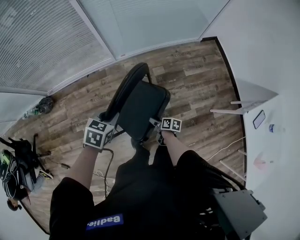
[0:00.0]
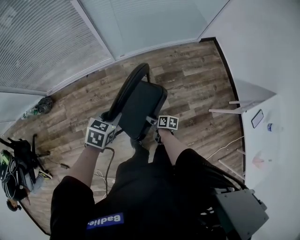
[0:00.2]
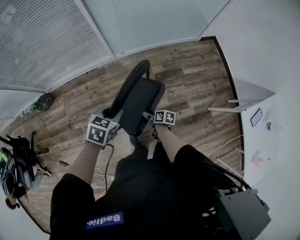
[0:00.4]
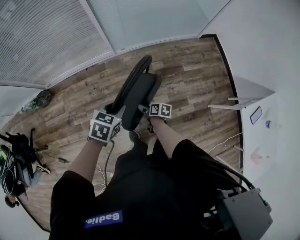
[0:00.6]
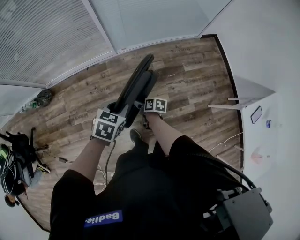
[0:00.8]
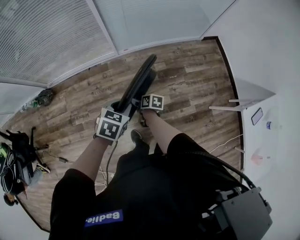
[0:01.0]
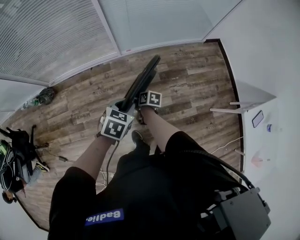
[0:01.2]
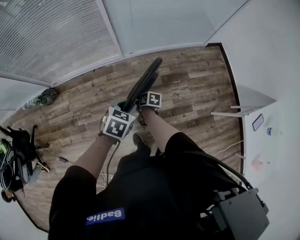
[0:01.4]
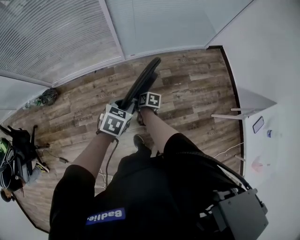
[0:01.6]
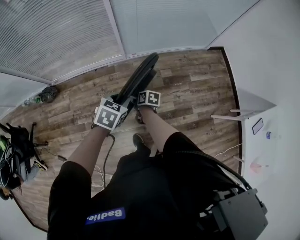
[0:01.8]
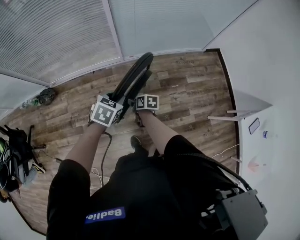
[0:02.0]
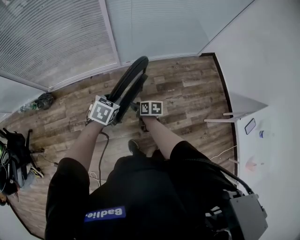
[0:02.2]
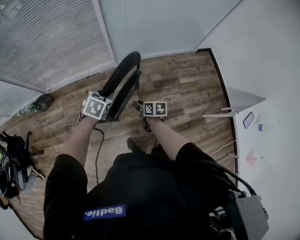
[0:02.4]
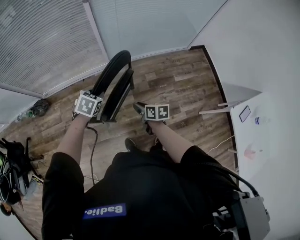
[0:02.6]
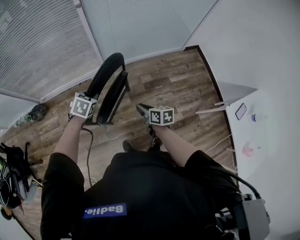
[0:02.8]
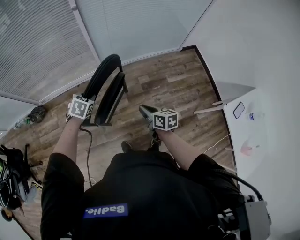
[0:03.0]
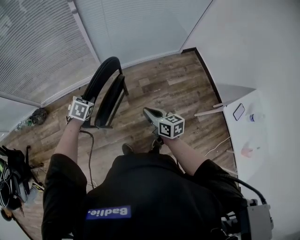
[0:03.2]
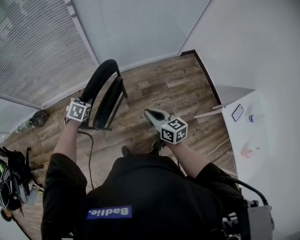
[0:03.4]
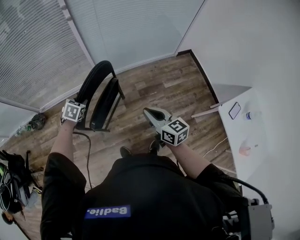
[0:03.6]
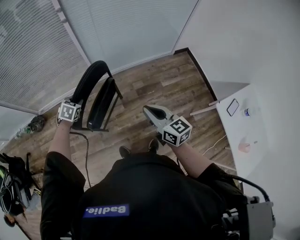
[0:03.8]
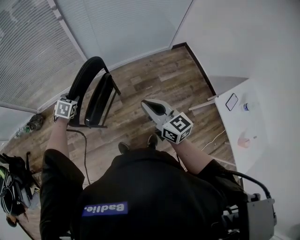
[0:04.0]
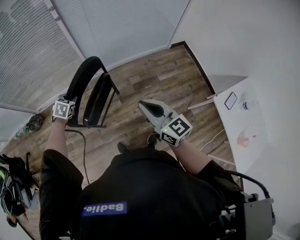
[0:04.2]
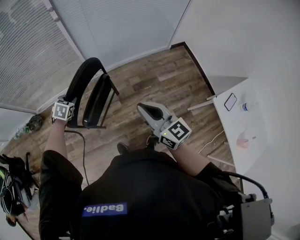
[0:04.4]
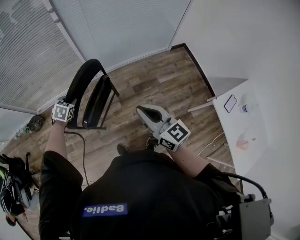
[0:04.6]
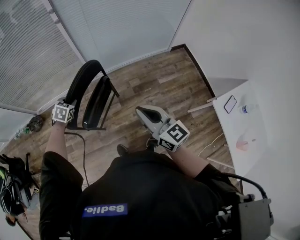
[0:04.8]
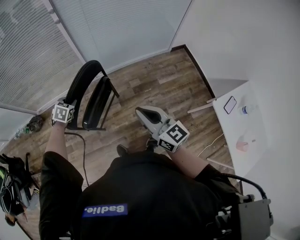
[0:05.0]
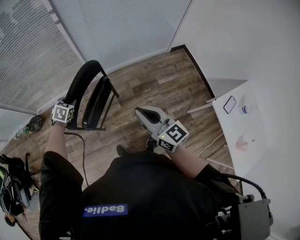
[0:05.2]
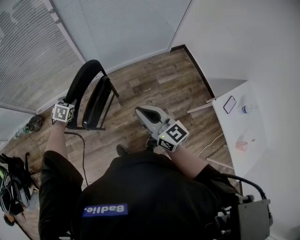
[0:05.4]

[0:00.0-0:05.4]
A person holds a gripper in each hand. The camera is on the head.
0:00.0 to 0:01.4: The right gripper travels to the left, forward and upward by about 20 cm.
0:01.4 to 0:02.8: The right gripper is displaced upward and to the right by approximately 20 cm, changes its angle by some 30 degrees, and closes its fingers; the left gripper is displaced to the left and forward by some 10 cm.
0:02.8 to 0:04.0: The right gripper goes about 25 cm upward and to the right, and swivels roughly 40 degrees.
0:04.0 to 0:05.4: The grippers stay close to where they were, moving slightly.

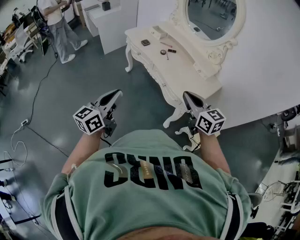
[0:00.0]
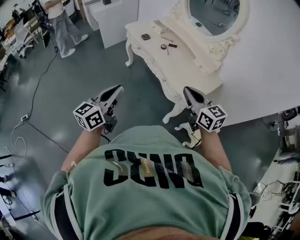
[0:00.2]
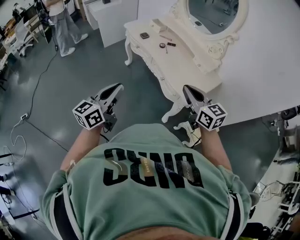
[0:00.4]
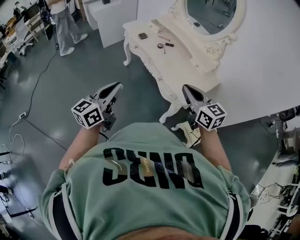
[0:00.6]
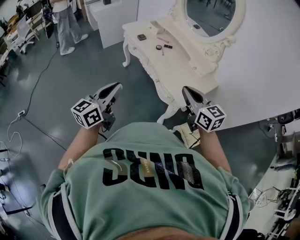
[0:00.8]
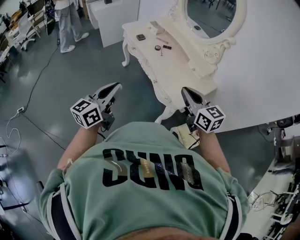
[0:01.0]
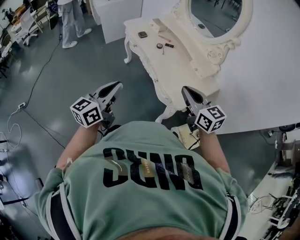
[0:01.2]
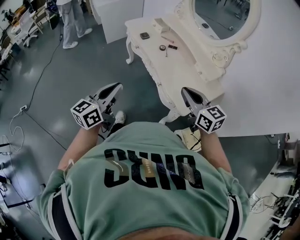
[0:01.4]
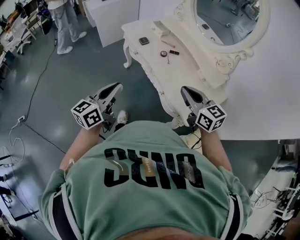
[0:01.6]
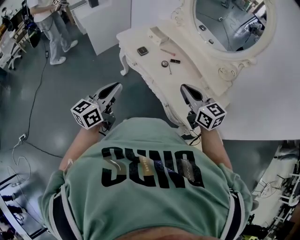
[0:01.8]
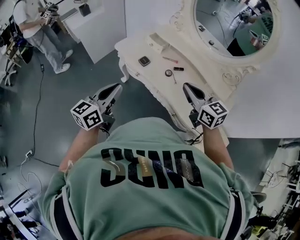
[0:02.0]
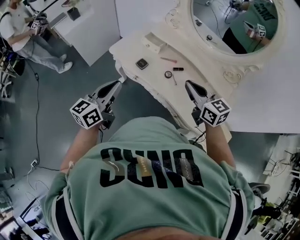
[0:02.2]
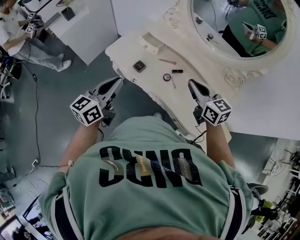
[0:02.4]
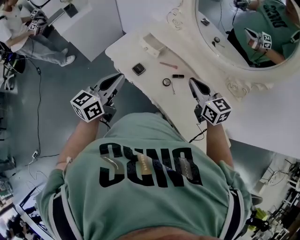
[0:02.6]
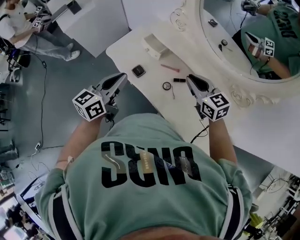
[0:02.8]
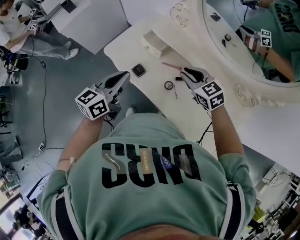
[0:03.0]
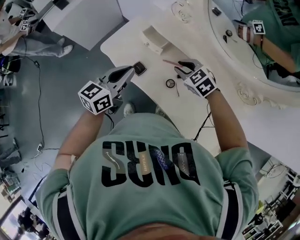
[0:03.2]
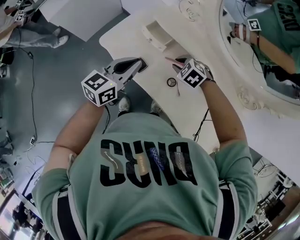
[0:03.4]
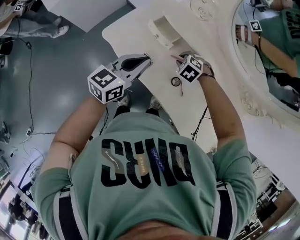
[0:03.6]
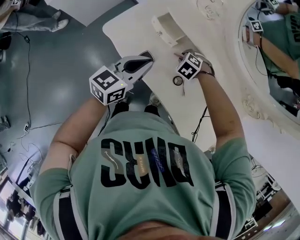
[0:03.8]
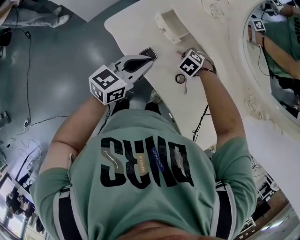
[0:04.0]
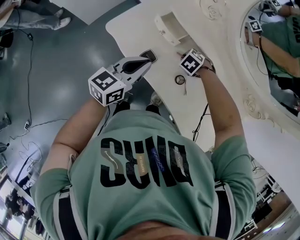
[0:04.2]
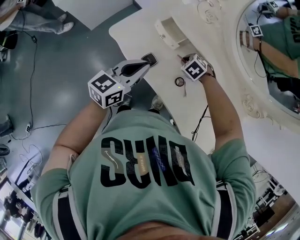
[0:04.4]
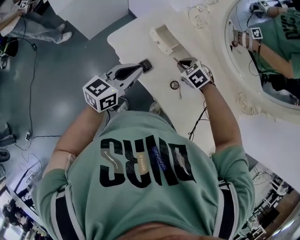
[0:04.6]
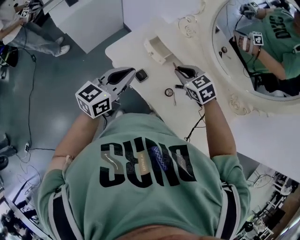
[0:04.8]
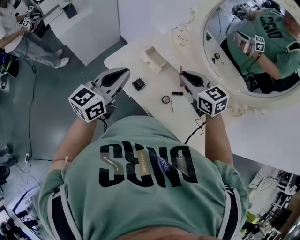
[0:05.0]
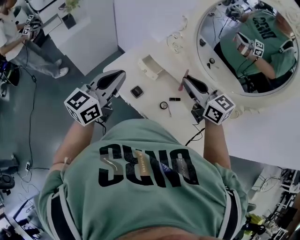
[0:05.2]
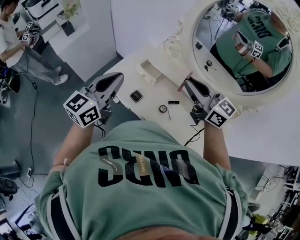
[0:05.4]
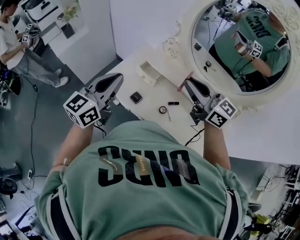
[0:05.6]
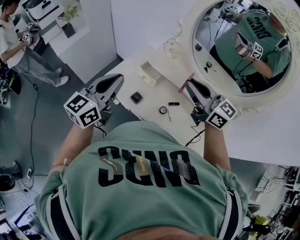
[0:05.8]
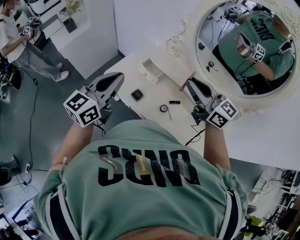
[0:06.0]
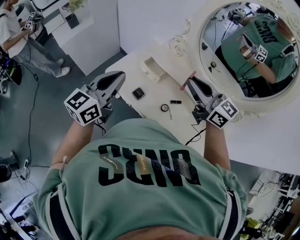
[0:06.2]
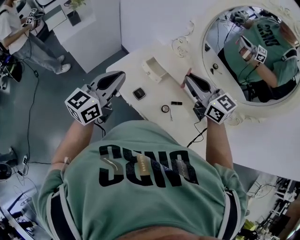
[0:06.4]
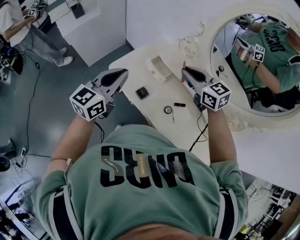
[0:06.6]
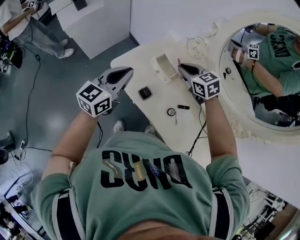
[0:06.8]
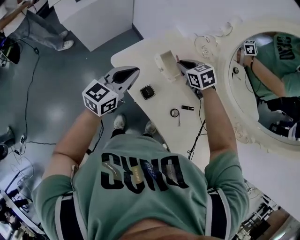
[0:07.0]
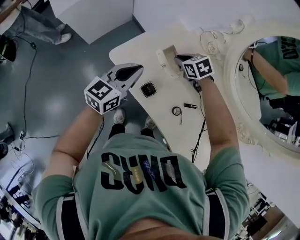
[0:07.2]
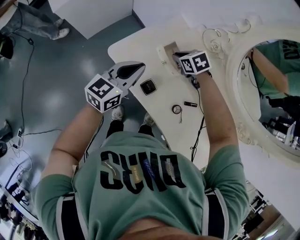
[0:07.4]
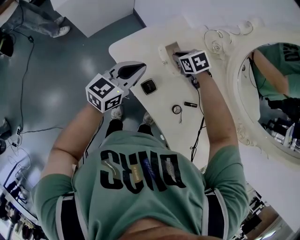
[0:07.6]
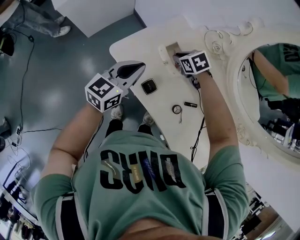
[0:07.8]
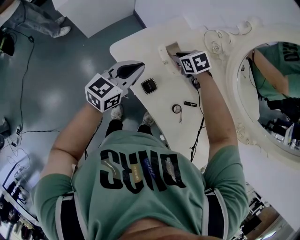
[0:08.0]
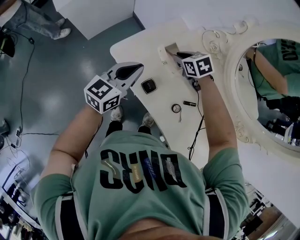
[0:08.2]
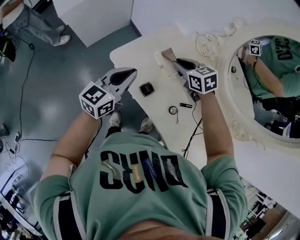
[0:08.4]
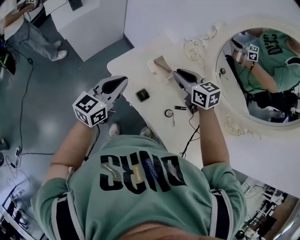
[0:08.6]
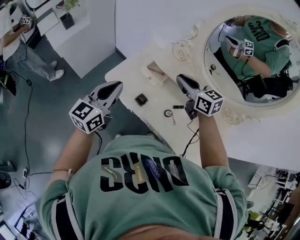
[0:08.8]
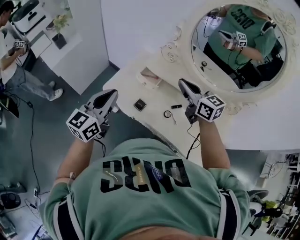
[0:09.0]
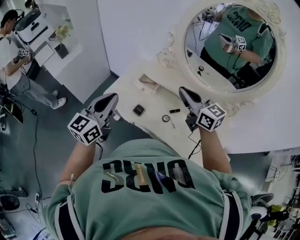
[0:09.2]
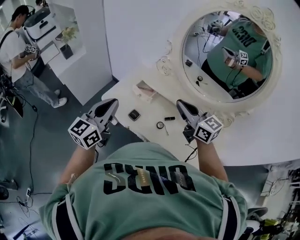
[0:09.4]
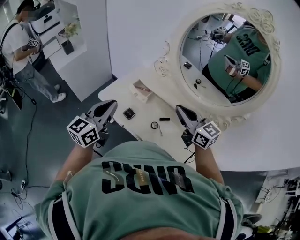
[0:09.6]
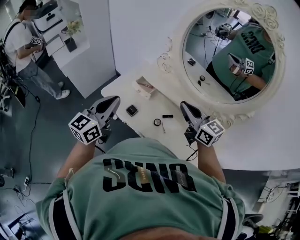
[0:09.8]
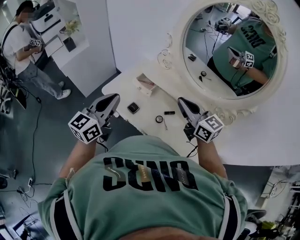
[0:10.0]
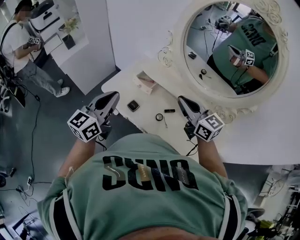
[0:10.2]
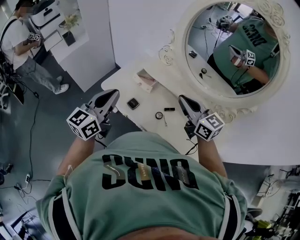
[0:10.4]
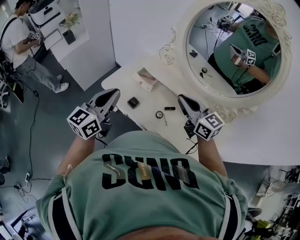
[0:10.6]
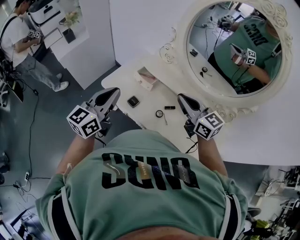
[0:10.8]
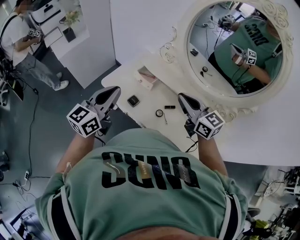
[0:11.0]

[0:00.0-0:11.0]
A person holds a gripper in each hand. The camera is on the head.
0:00.0 to 0:01.6: Both grippers travel together forward, roughly 15 cm.
0:01.6 to 0:03.2: The two grippers travel together, forward, some 40 cm. The left gripper swivels approximately 20 degrees, while the right gripper angles its fingers downward, by about 40 degrees, and opens.
0:03.2 to 0:04.8: The right gripper moves roughly 15 cm downward and comes back. The left gripper heads upward, covering roughly 5 cm.
0:04.8 to 0:06.2: The right gripper shifts about 20 cm upward, and angles its fingers upward, by roughly 40 degrees. Meanwhile the left gripper is displaced upward by some 10 cm.
0:06.2 to 0:07.8: The right gripper is displaced downward and forward by some 40 cm, and tilts its fingers about 60 degrees downward. The left gripper moves downward and forward, approximately 20 cm.
0:07.8 to 0:09.4: The right gripper moves upward and backward, some 40 cm, and tips its fingers upward by about 60 degrees. Meanwhile the left gripper heads upward and backward, covering about 25 cm.
0:09.4 to 0:11.0: The grippers make only small movements.

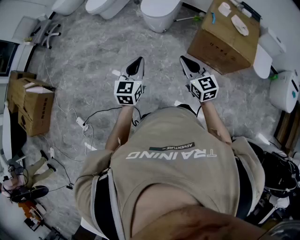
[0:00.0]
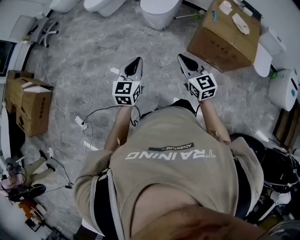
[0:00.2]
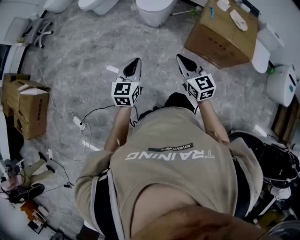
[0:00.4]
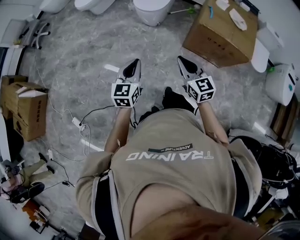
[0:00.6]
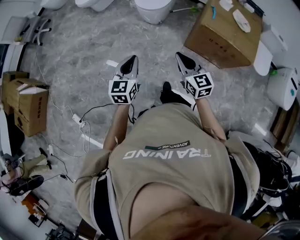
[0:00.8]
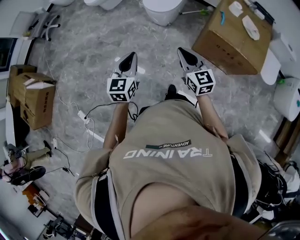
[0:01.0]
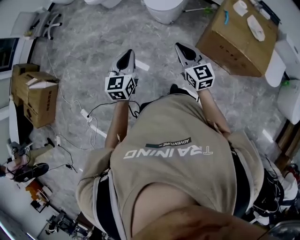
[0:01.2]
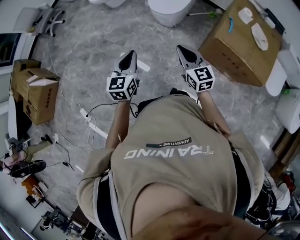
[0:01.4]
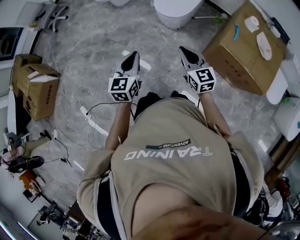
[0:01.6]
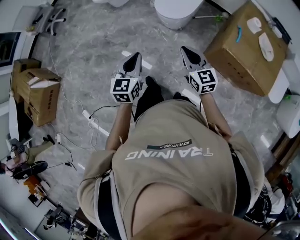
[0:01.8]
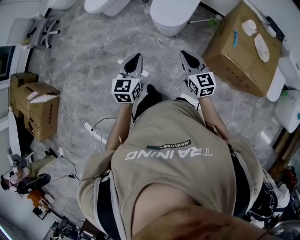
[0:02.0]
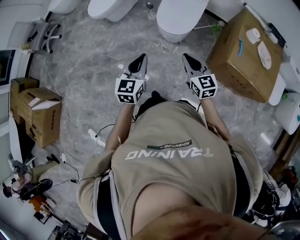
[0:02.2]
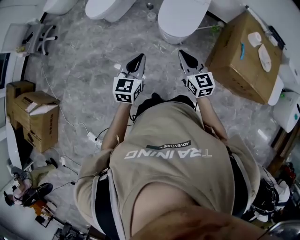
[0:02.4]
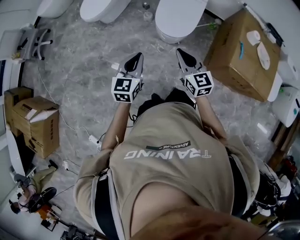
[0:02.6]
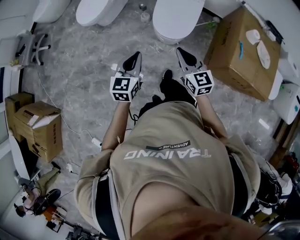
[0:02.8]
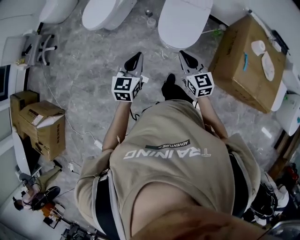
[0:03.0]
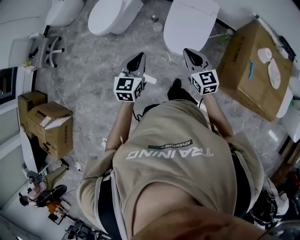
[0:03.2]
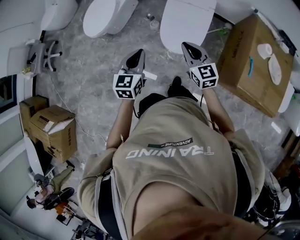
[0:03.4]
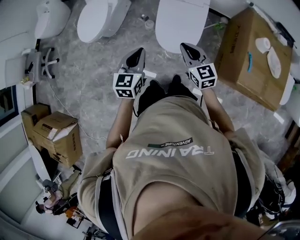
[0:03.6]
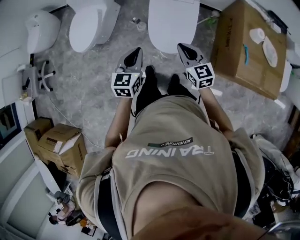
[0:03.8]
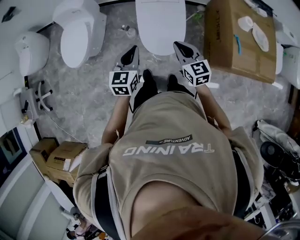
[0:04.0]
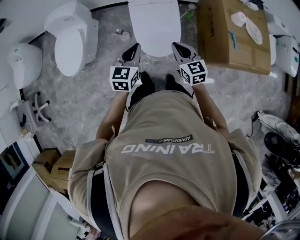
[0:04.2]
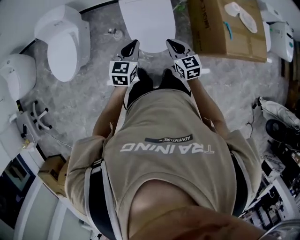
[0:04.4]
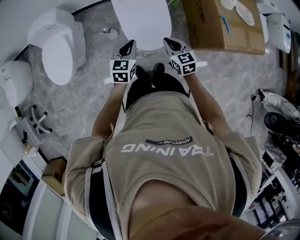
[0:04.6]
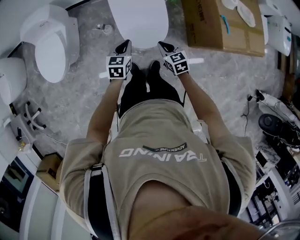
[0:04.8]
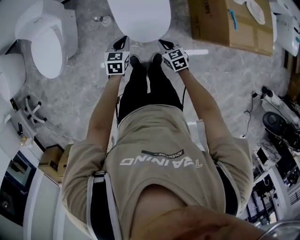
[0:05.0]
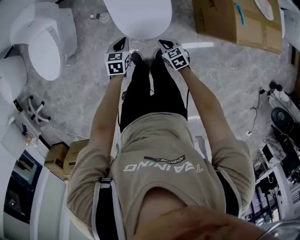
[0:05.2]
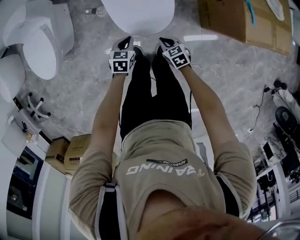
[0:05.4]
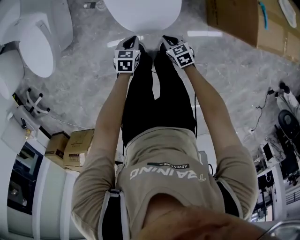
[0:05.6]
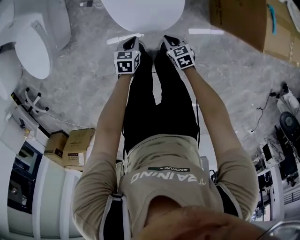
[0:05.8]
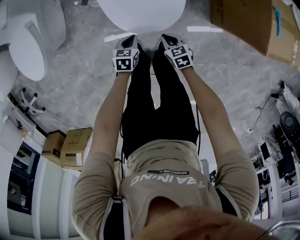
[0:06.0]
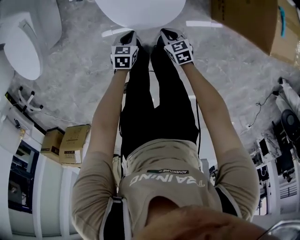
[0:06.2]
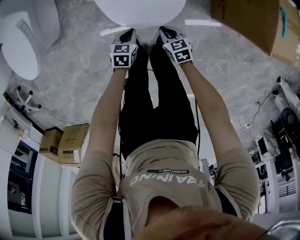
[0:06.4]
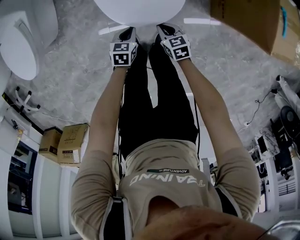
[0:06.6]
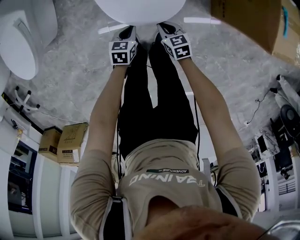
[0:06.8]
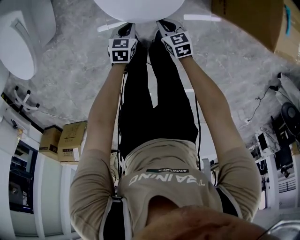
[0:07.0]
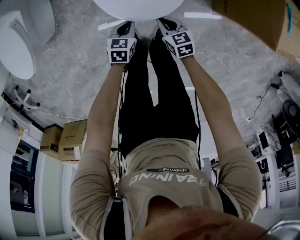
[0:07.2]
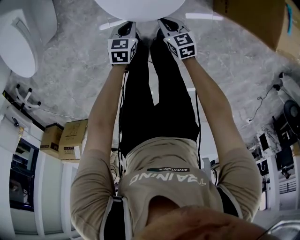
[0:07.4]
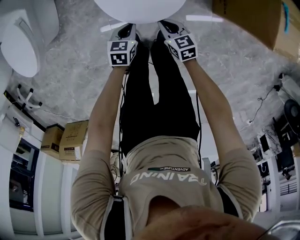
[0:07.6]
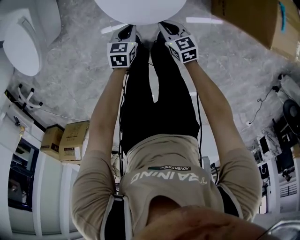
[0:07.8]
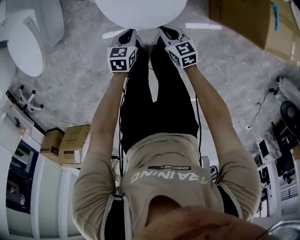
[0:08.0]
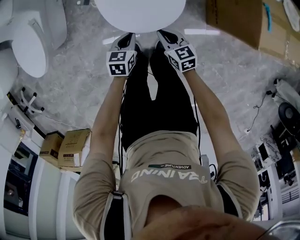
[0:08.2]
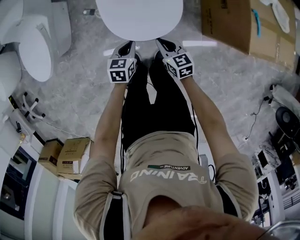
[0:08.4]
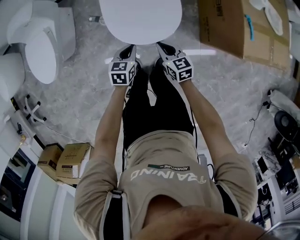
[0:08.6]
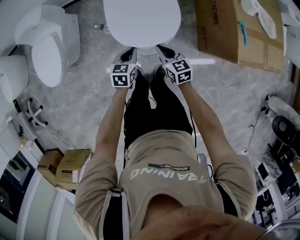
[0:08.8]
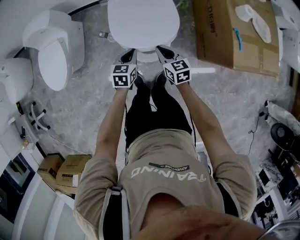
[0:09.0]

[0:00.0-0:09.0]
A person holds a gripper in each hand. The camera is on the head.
0:00.0 to 0:01.6: The two grippers go about 25 cm forward.
0:01.6 to 0:03.0: The right gripper shifts about 30 cm forward and to the left. Meanwhile the left gripper shifts some 35 cm forward.
0:03.0 to 0:04.4: The left gripper shifts by some 25 cm, and changes its angle by about 30 degrees; the right gripper moves some 20 cm, and swivels about 30 degrees.
0:04.4 to 0:06.0: Both grippers travel together downward, approximately 40 cm. The right gripper changes its angle by some 30 degrees. Meanwhile the left gripper tilts its fingers roughly 30 degrees downward.
0:06.0 to 0:07.6: The grippers make only small movements.
0:07.6 to 0:09.0: The grippers both shift upward by roughly 25 cm.
